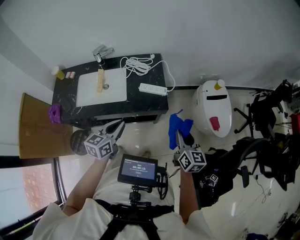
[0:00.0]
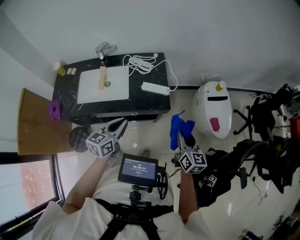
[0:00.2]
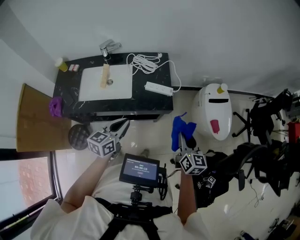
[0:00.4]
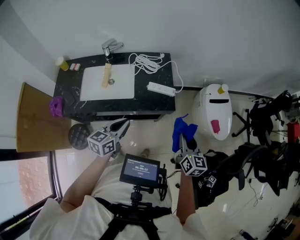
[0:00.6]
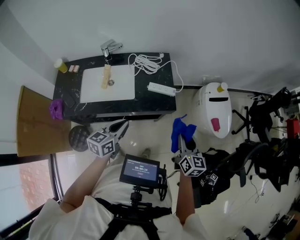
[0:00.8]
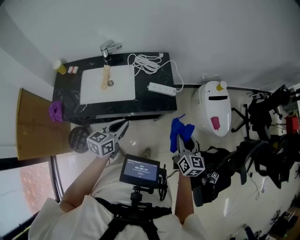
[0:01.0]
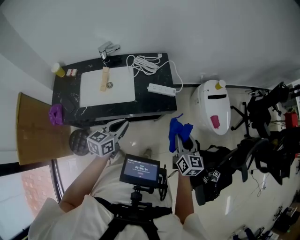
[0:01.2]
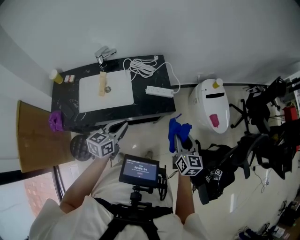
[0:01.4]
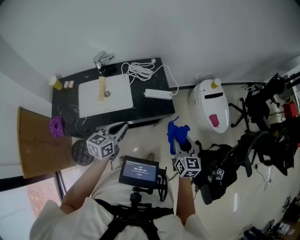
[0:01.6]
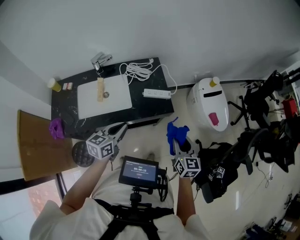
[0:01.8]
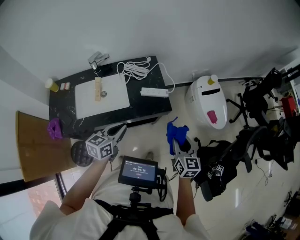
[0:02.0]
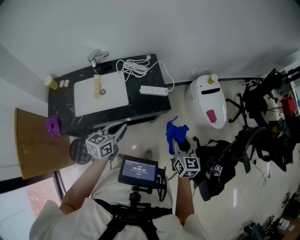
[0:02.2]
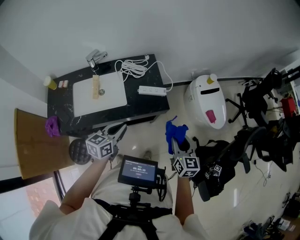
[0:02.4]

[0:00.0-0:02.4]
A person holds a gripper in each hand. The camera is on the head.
0:00.0 to 0:01.2: Both grippers travel together to the left, some 15 cm.
0:01.2 to 0:02.4: The grippers stay close to where they were, moving slightly.

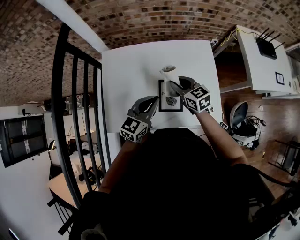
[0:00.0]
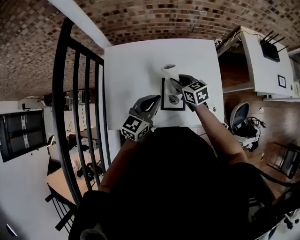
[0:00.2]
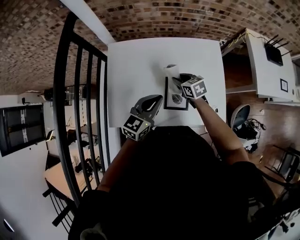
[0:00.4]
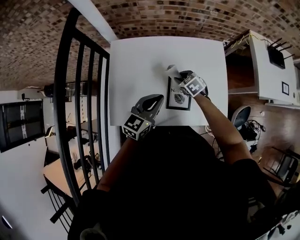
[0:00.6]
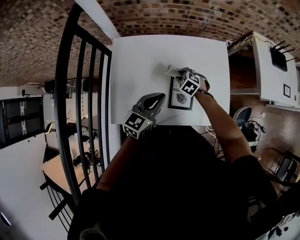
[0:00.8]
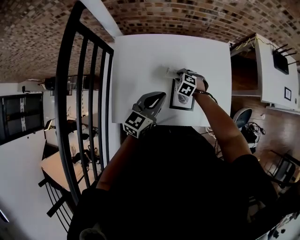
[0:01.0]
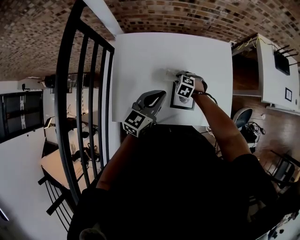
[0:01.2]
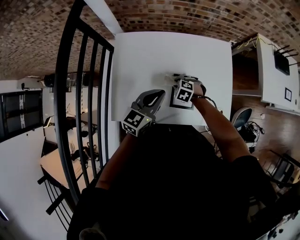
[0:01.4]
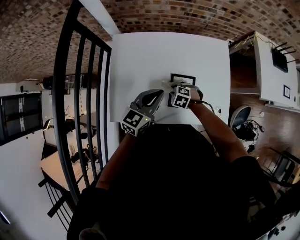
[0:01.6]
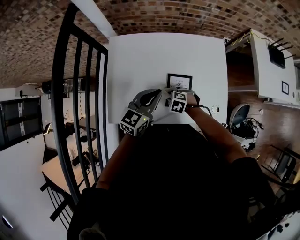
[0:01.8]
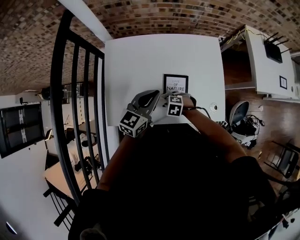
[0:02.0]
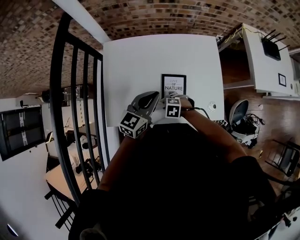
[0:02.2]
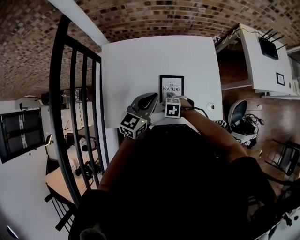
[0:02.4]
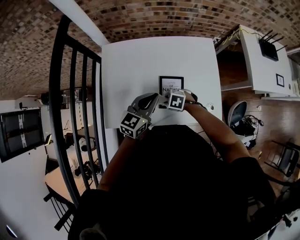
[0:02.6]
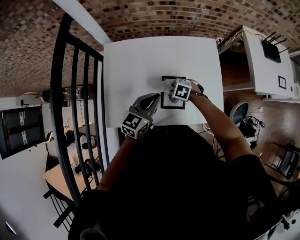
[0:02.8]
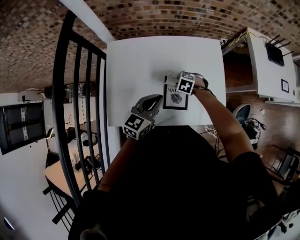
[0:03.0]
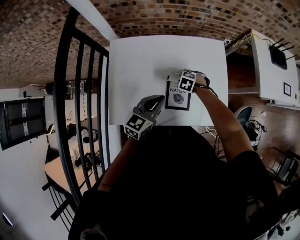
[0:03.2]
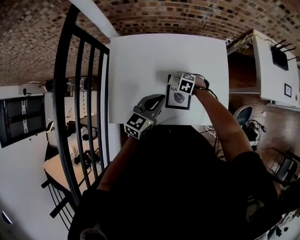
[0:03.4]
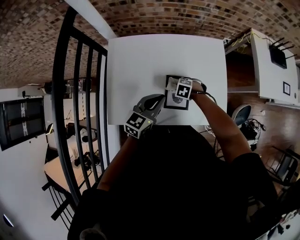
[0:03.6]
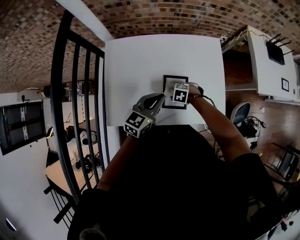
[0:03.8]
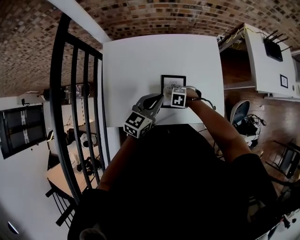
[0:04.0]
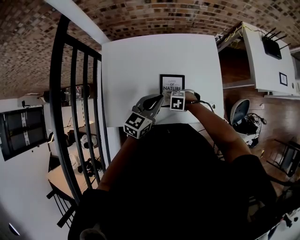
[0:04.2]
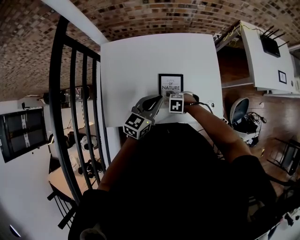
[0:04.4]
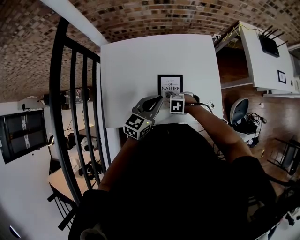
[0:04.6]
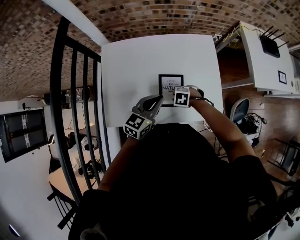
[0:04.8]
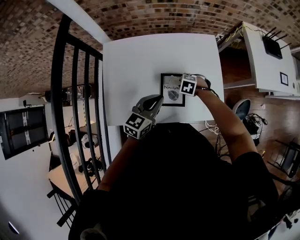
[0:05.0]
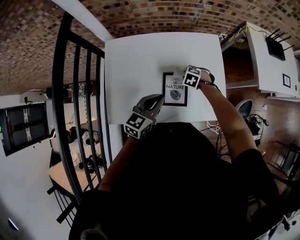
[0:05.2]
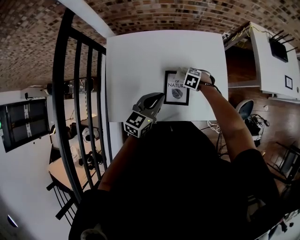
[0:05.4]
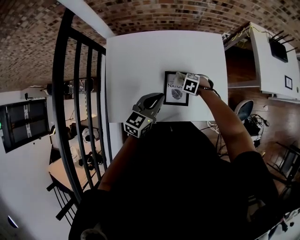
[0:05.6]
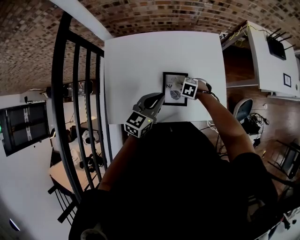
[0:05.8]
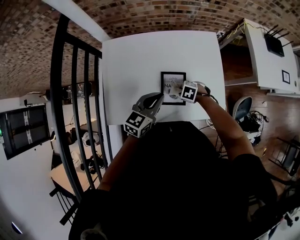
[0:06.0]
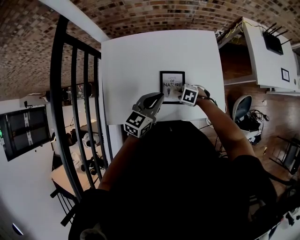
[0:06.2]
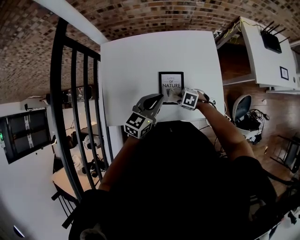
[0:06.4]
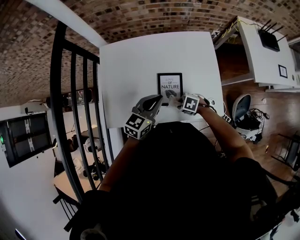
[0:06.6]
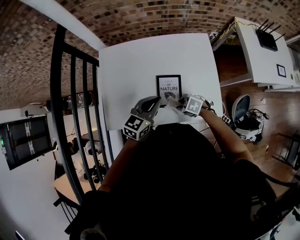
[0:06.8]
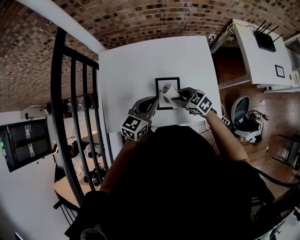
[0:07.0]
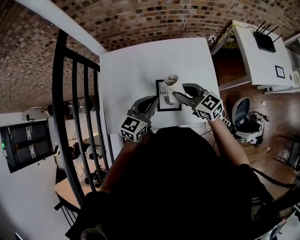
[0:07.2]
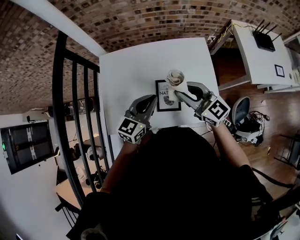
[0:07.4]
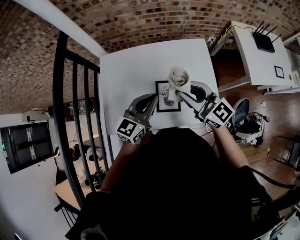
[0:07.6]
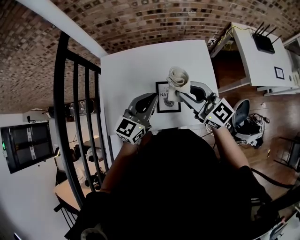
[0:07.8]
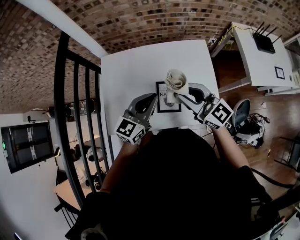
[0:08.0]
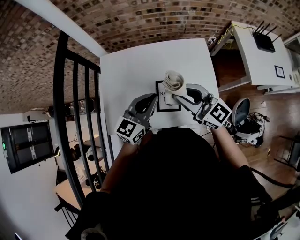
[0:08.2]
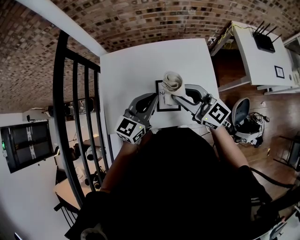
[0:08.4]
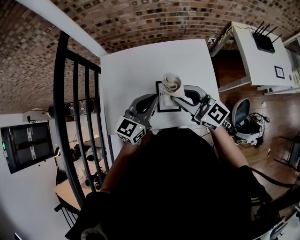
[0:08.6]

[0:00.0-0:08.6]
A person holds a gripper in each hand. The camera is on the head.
0:00.0 to 0:01.4: The right gripper goes about 20 cm downward and to the left, and points its fingers approximately 40 degrees further downward. Meanwhile the left gripper shifts approximately 5 cm to the left.
0:01.4 to 0:02.8: The left gripper shifts by about 5 cm.
0:02.8 to 0:04.4: The right gripper shifts by some 10 cm.
0:05.8 to 0:07.2: The right gripper moves upward, some 25 cm, and points its fingers approximately 60 degrees further upward.
0:07.2 to 0:08.6: The left gripper travels upward by some 5 cm. The right gripper is displaced upward by some 10 cm, and swivels about 20 degrees.

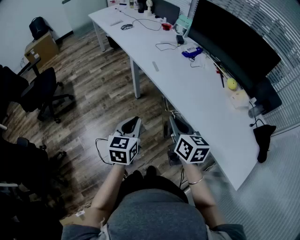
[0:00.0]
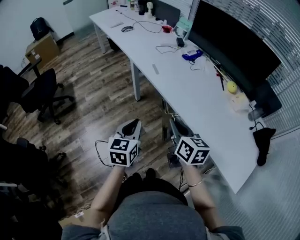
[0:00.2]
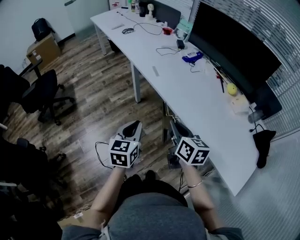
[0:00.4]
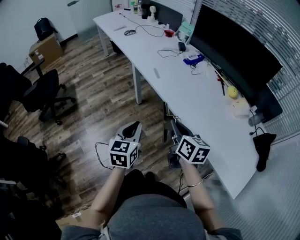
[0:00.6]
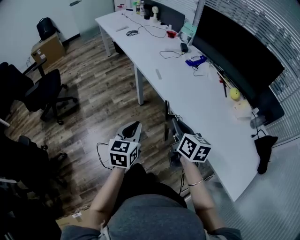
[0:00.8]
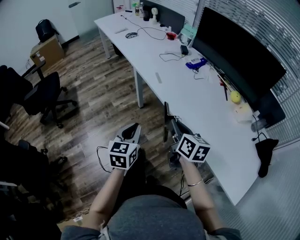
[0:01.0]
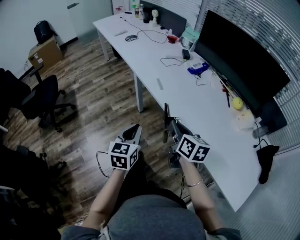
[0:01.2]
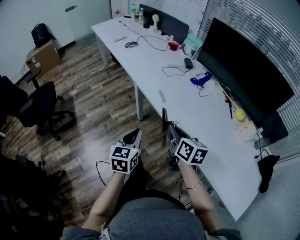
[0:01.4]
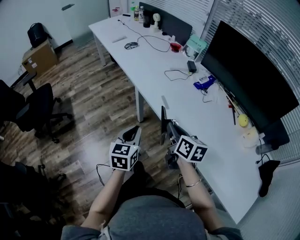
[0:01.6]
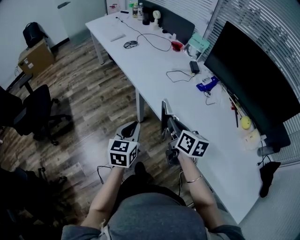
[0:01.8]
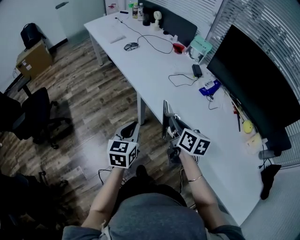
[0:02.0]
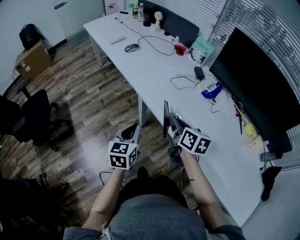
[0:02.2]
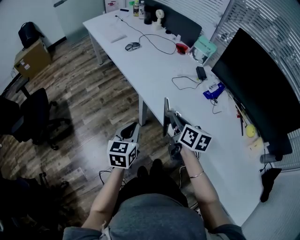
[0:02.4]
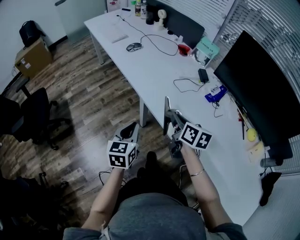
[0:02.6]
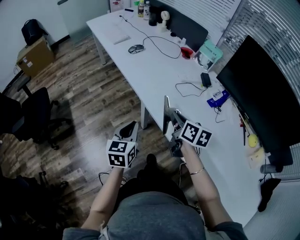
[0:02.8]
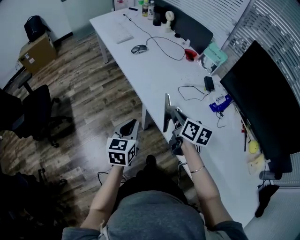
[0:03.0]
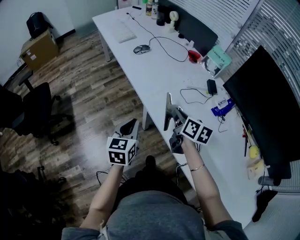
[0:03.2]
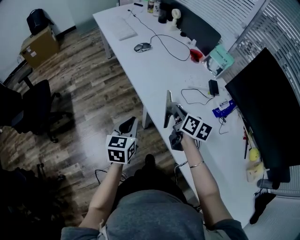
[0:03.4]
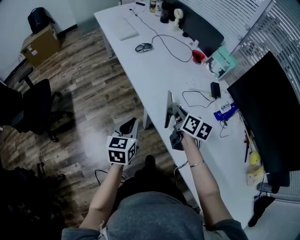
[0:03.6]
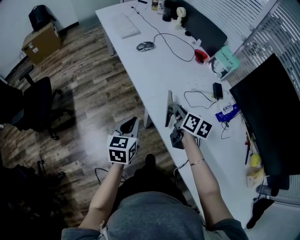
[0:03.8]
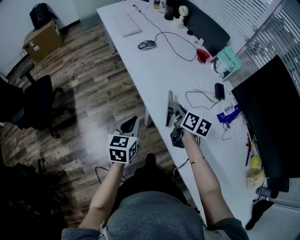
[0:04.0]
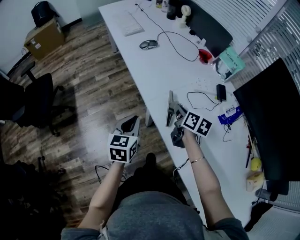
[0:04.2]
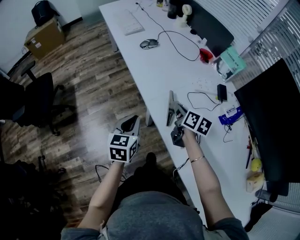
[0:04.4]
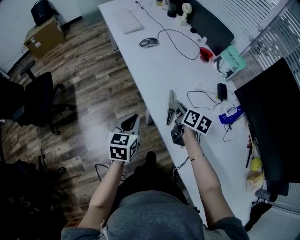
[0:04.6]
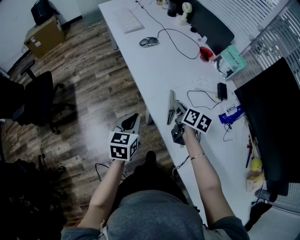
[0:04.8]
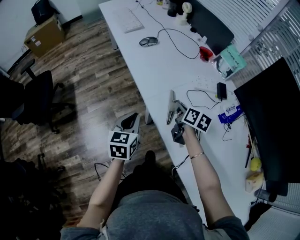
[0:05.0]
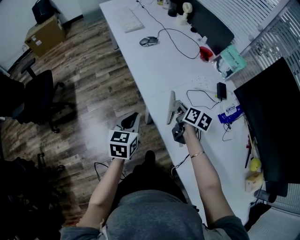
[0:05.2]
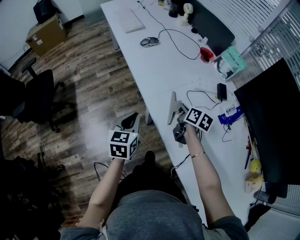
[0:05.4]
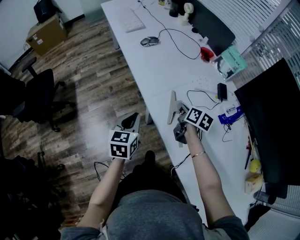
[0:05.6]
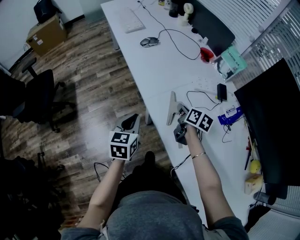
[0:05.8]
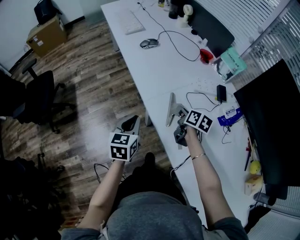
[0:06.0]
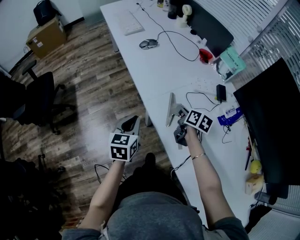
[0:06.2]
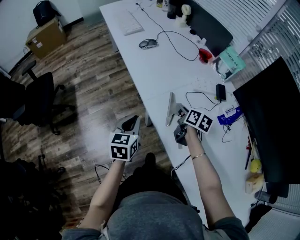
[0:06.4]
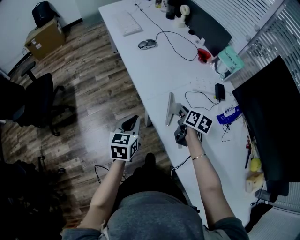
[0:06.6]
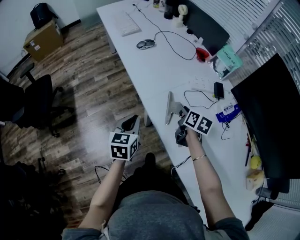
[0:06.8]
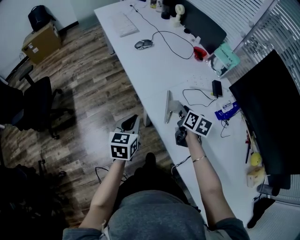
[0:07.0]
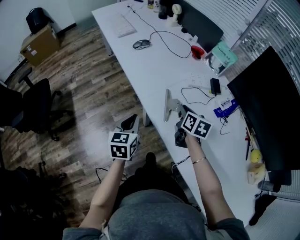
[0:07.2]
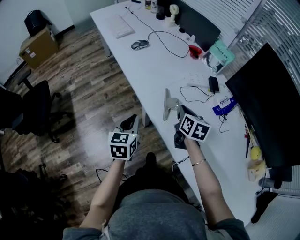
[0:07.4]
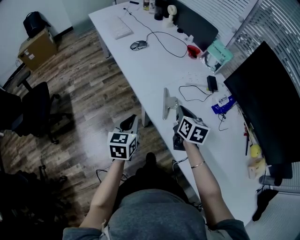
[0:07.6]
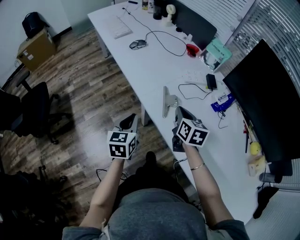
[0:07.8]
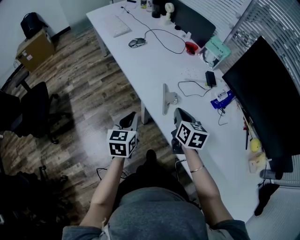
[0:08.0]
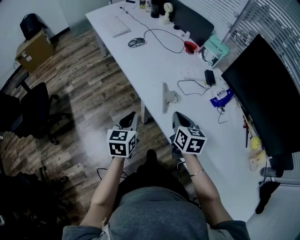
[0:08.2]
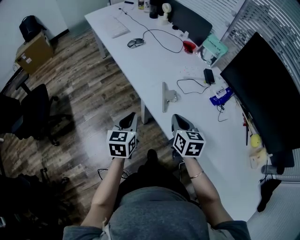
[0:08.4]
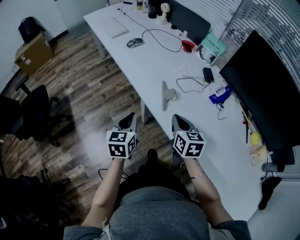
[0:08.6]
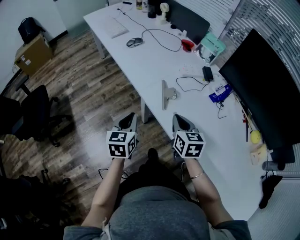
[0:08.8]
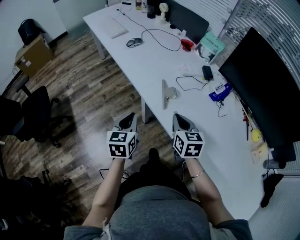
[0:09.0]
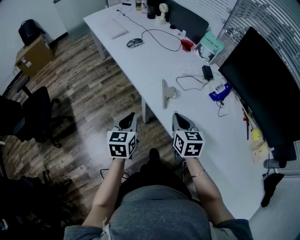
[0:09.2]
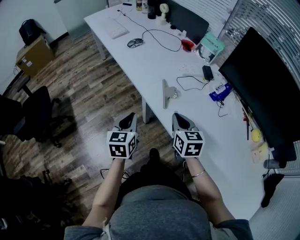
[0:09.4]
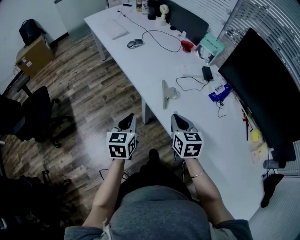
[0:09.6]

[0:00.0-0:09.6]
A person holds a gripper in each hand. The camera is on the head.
0:00.0 to 0:01.6: Both grippers move forward, approximately 20 cm.
0:01.6 to 0:03.2: Both grippers move forward, approximately 25 cm.
0:03.2 to 0:04.8: The right gripper heads forward and downward, covering some 10 cm. Meanwhile the left gripper is displaced forward by approximately 5 cm.
0:04.8 to 0:06.4: The right gripper opens.
0:06.4 to 0:08.0: The right gripper moves backward and upward, about 15 cm, swivels some 20 degrees, and closes its fingers.
0:08.0 to 0:09.6: The right gripper goes about 5 cm backward.

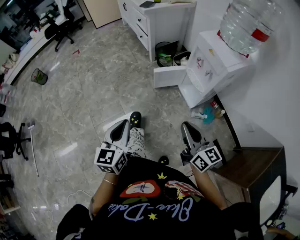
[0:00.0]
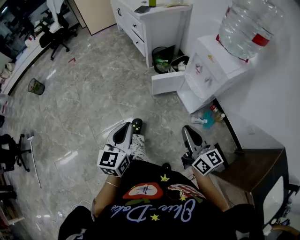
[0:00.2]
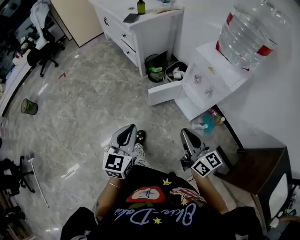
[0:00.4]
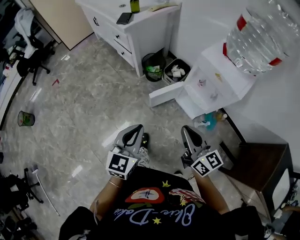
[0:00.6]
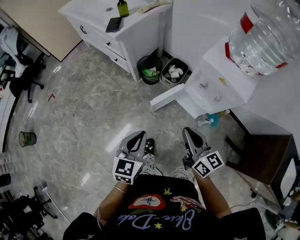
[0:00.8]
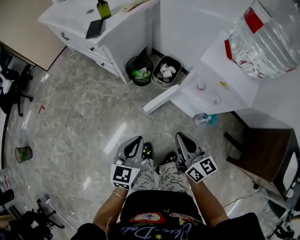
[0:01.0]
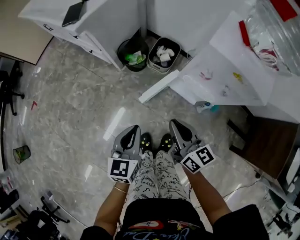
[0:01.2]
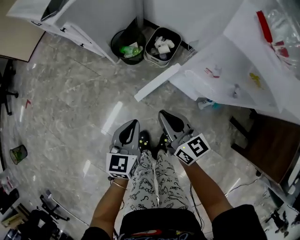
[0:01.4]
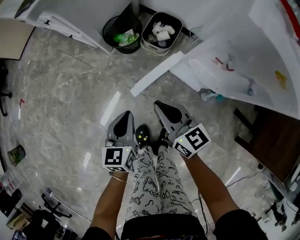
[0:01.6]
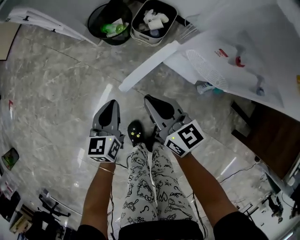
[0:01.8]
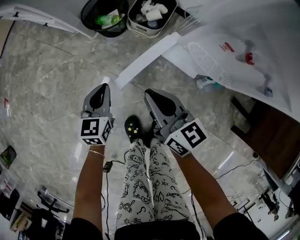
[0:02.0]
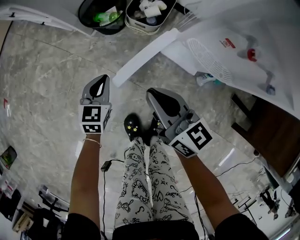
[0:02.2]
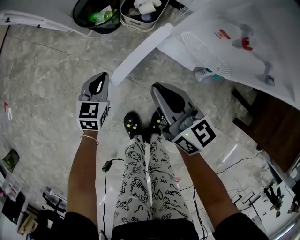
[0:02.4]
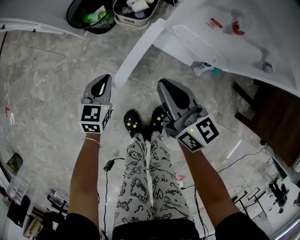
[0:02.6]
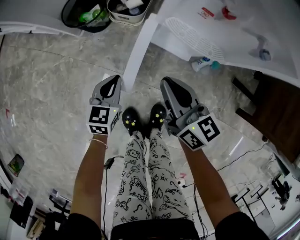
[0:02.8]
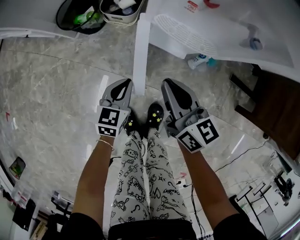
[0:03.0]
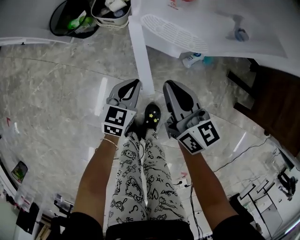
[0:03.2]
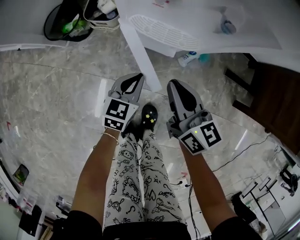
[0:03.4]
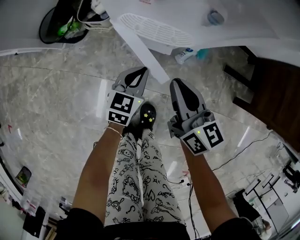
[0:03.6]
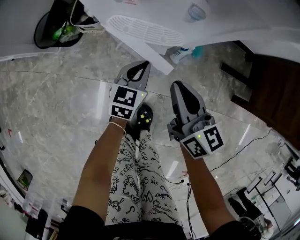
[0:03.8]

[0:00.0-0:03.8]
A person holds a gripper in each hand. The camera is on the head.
0:00.0 to 0:01.2: The right gripper ends up some 40 cm from where it was, and rotates approximately 30 degrees, while the left gripper changes place by approximately 50 cm, and swivels some 30 degrees.
0:01.2 to 0:02.6: The left gripper goes some 30 cm downward, and rotates roughly 20 degrees; the right gripper heads downward, covering roughly 20 cm.
0:02.6 to 0:03.8: The two grippers go approximately 25 cm to the right. The left gripper turns by approximately 20 degrees. The right gripper swivels some 20 degrees.
